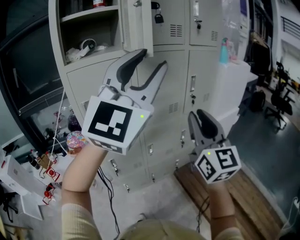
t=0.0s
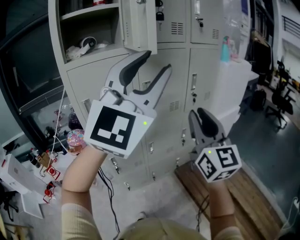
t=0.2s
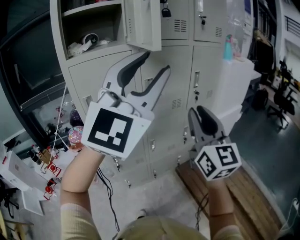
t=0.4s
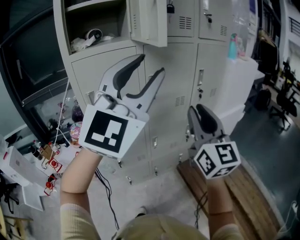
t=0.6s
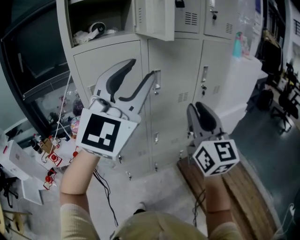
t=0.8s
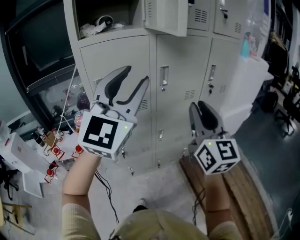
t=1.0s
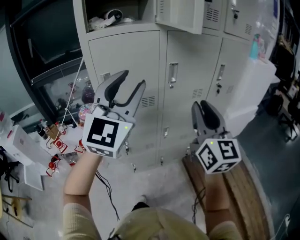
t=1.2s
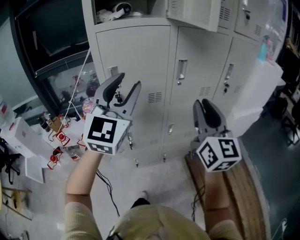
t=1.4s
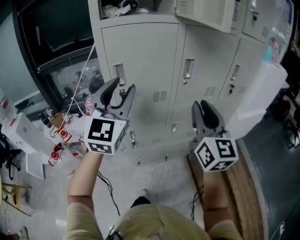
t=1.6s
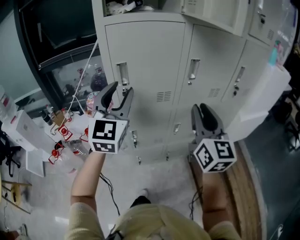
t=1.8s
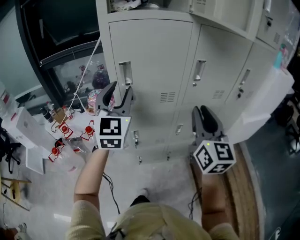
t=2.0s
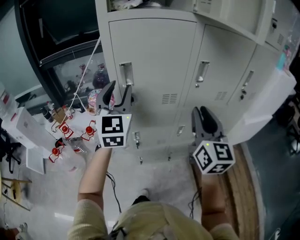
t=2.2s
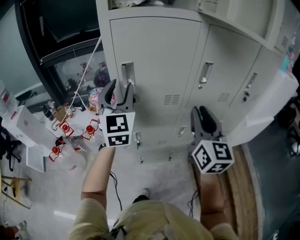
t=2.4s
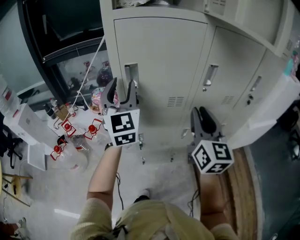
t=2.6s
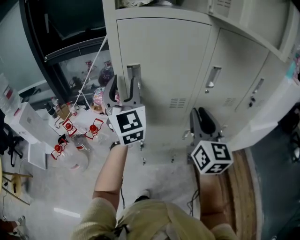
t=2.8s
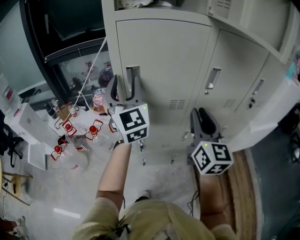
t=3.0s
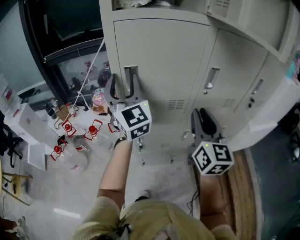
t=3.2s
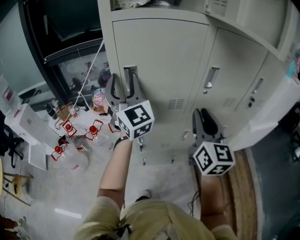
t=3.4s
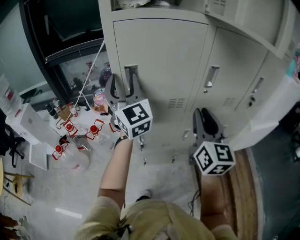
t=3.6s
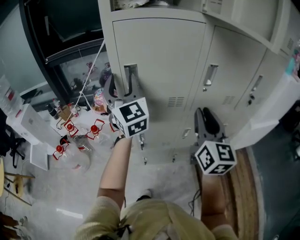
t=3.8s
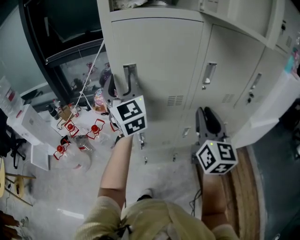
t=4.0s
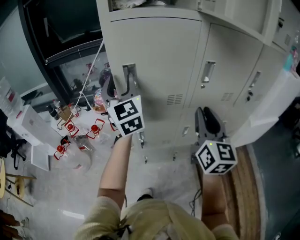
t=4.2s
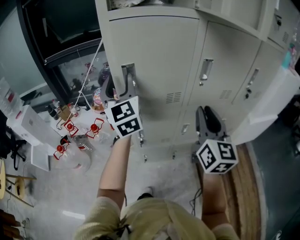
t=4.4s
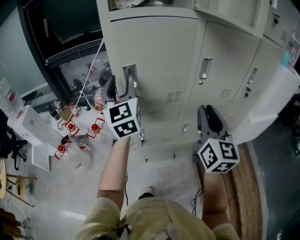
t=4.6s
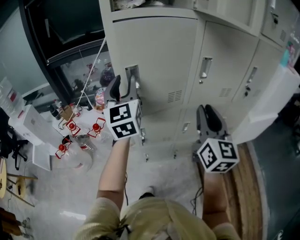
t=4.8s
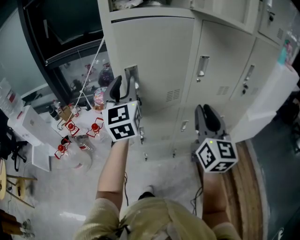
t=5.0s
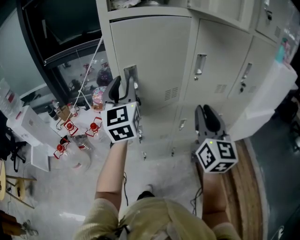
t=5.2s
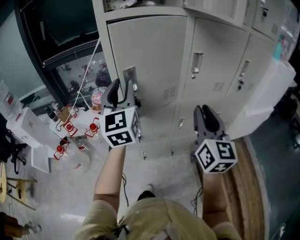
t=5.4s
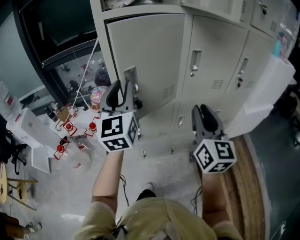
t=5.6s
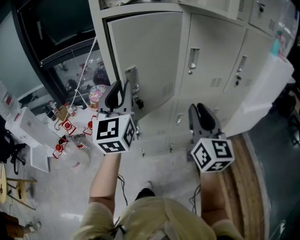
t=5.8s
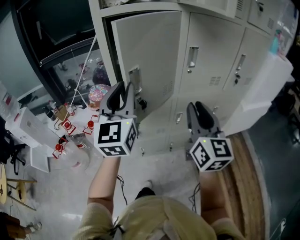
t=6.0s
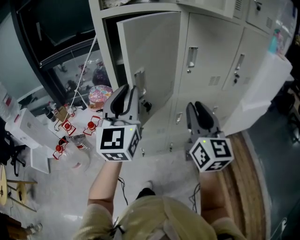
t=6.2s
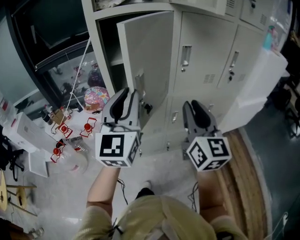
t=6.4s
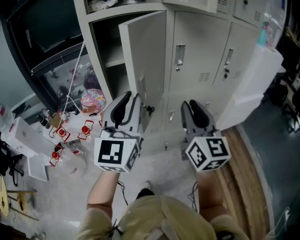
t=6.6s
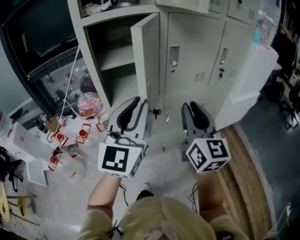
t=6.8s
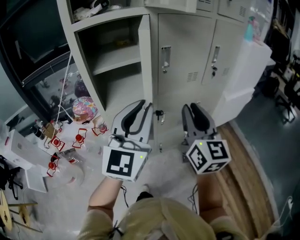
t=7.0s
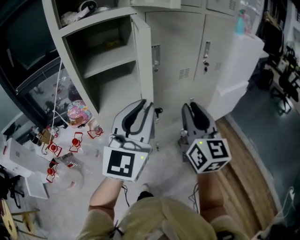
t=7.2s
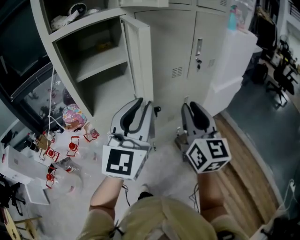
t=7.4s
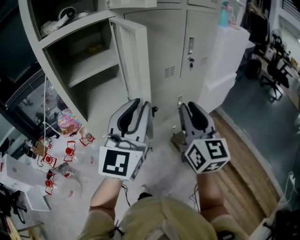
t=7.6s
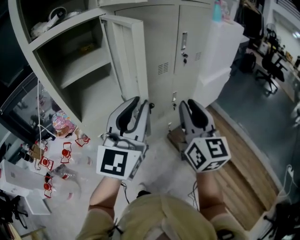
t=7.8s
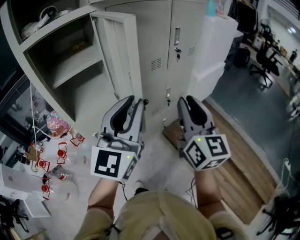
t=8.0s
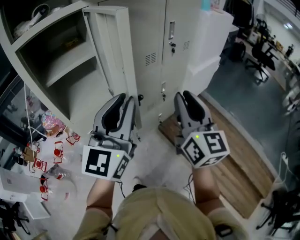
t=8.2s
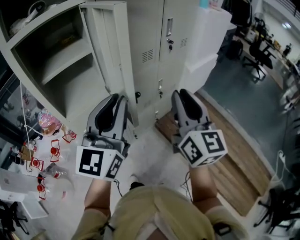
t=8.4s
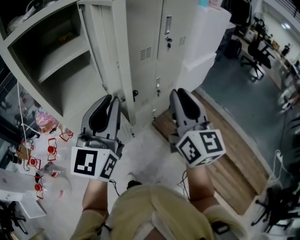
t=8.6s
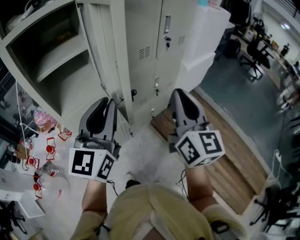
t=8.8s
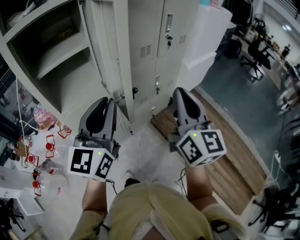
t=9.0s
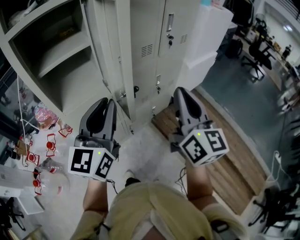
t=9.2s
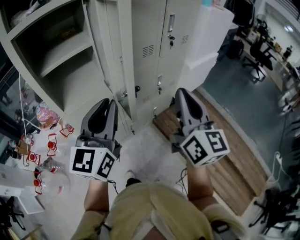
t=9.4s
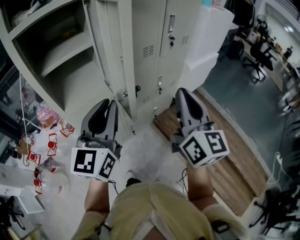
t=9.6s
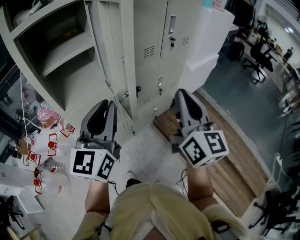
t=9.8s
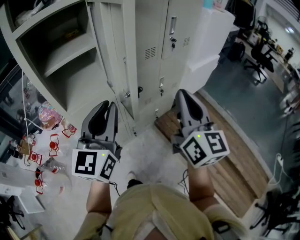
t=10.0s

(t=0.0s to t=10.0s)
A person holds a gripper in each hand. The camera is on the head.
t=0.0s - t=1.4s: The right gripper goes about 10 cm to the left, while the left gripper shifts approximately 25 cm to the left and downward, and rotates some 30 degrees.
t=1.4s - t=2.8s: The two grippers go approximately 15 cm forward, to the left and downward. The left gripper changes its angle by approximately 30 degrees.
t=2.8s - t=4.2s: The grippers move only a little.
t=4.2s - t=5.8s: The left gripper heads backward and to the right, covering some 15 cm, turns by about 20 degrees, and closes up, while the right gripper heads backward, covering about 5 cm.
t=5.8s - t=7.2s: The left gripper goes about 20 cm to the right and backward, and rotates about 30 degrees. Meanwhile the right gripper goes about 5 cm to the right.
t=7.2s - t=8.6s: The right gripper shifts roughly 5 cm to the right.
t=8.6s - t=10.0s: The grippers make only small movements.

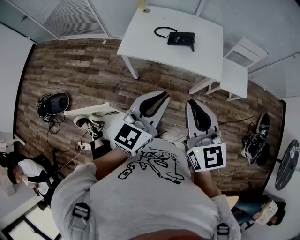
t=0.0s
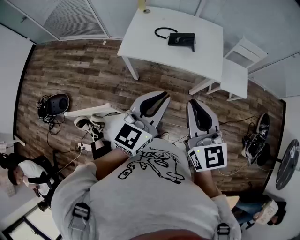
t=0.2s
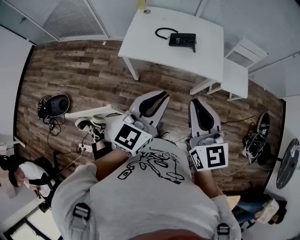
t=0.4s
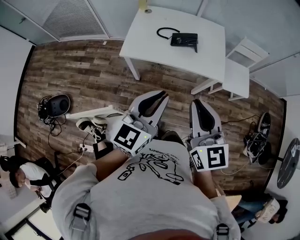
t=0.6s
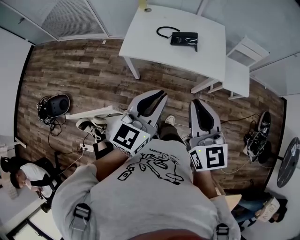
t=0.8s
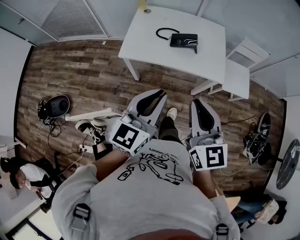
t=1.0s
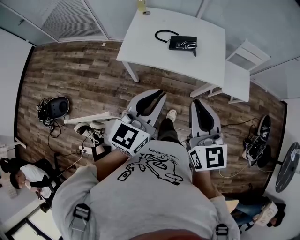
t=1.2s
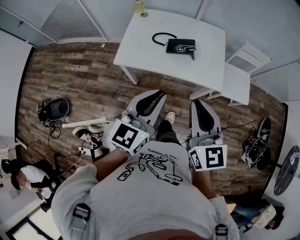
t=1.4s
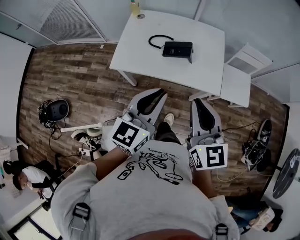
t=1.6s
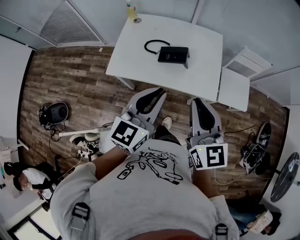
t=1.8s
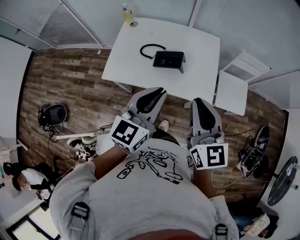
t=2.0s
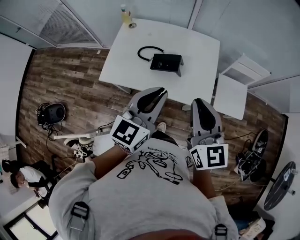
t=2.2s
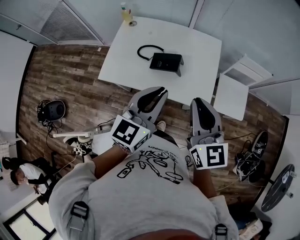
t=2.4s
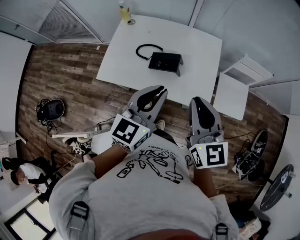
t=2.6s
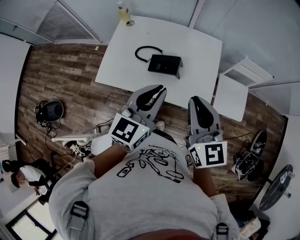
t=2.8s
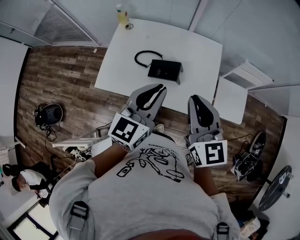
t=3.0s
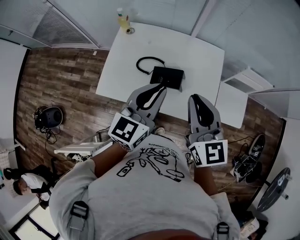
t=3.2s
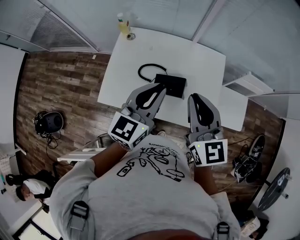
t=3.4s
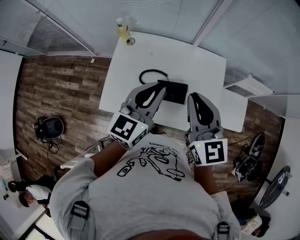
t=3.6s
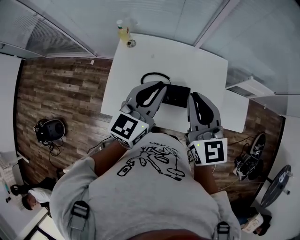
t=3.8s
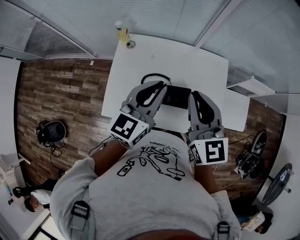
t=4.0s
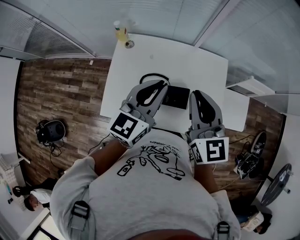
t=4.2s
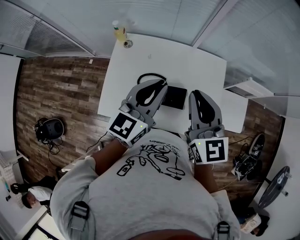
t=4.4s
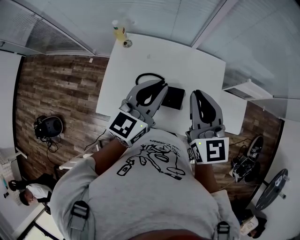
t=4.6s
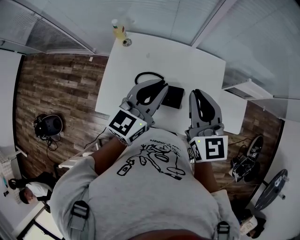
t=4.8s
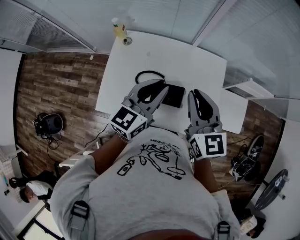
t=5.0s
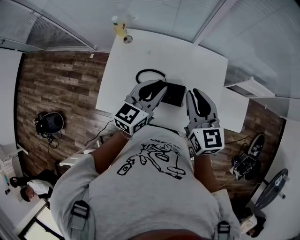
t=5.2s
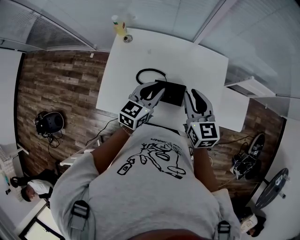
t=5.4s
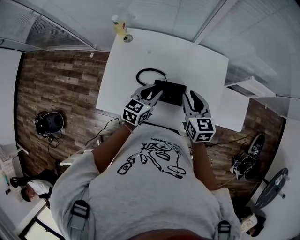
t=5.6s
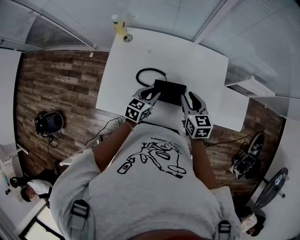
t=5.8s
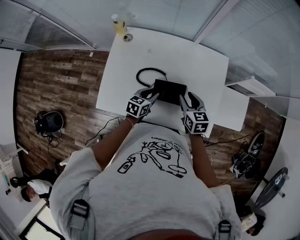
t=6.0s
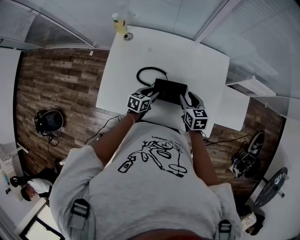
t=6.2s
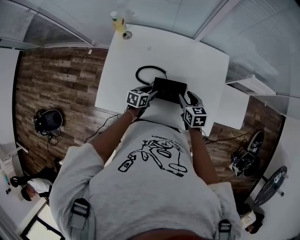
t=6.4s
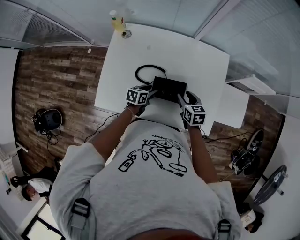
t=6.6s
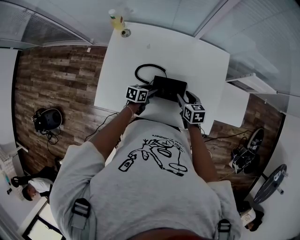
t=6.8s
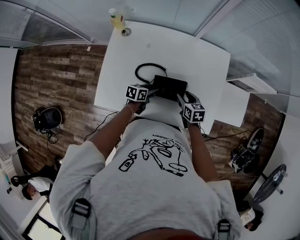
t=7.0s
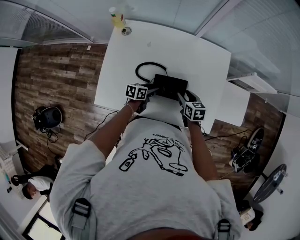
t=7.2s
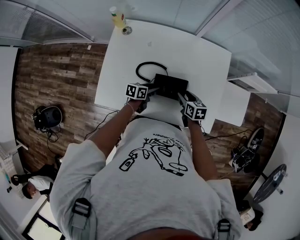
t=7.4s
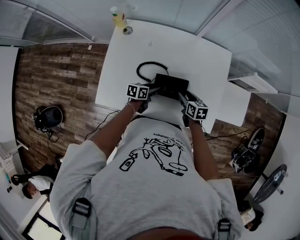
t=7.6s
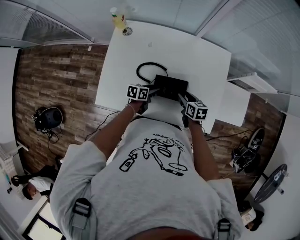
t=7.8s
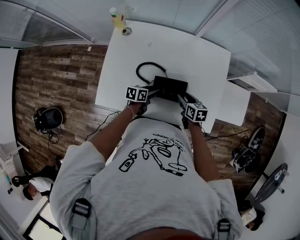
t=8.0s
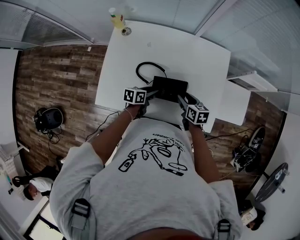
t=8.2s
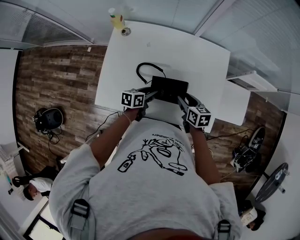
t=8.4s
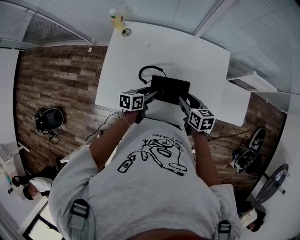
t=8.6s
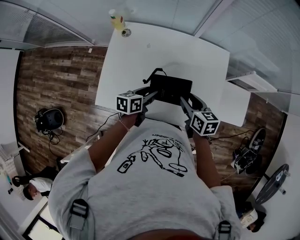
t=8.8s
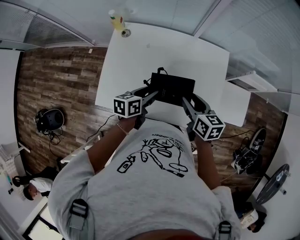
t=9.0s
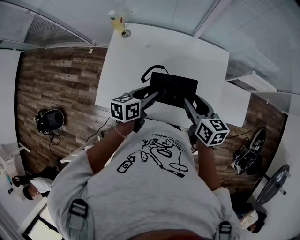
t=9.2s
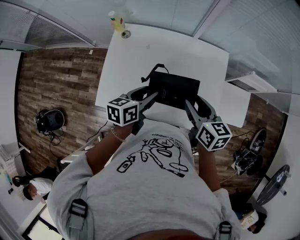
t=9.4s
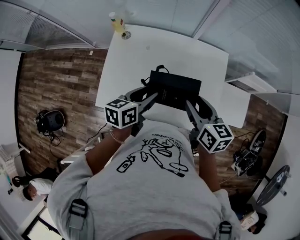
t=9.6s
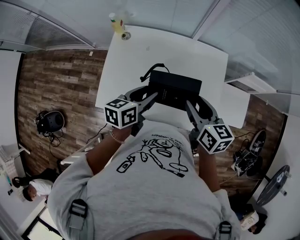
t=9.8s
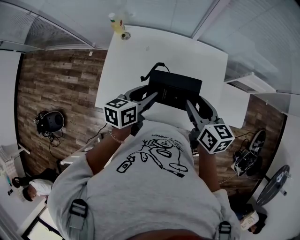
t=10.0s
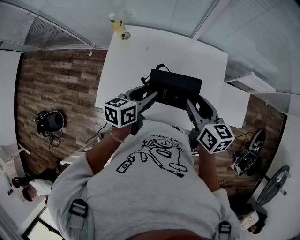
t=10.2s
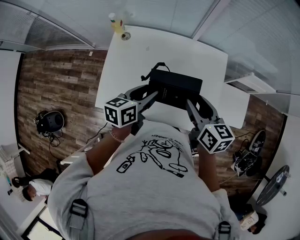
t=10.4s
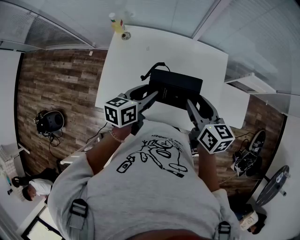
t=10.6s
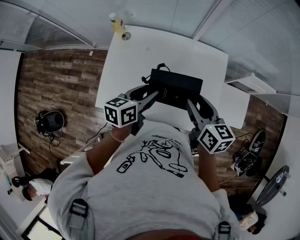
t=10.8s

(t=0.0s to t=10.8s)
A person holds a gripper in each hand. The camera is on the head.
t=0.0s - t=1.6s: The two grippers go about 15 cm forward.
t=1.6s - t=3.0s: The two grippers go some 20 cm forward.
t=3.0s - t=4.6s: The two grippers go some 20 cm forward.
t=4.6s - t=6.2s: The grippers both shift downward by some 35 cm. The left gripper tips its fingers downward by some 40 degrees, and opens its fingers, while the right gripper points its fingers about 30 degrees further downward, and opens.
t=6.2s - t=7.8s: The right gripper is displaced downward by roughly 10 cm. Meanwhile the left gripper heads downward, covering some 5 cm.
t=7.8s - t=9.2s: Both grippers travel together upward, approximately 20 cm.
t=9.2s - t=10.8s: The two grippers go about 5 cm upward.

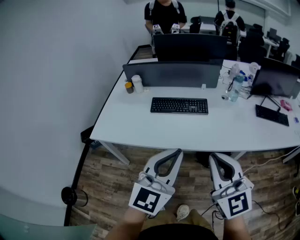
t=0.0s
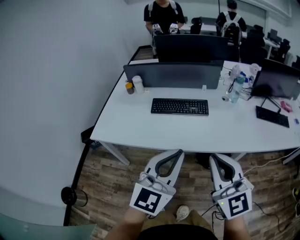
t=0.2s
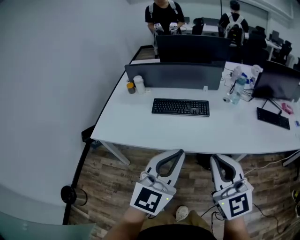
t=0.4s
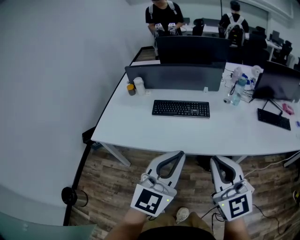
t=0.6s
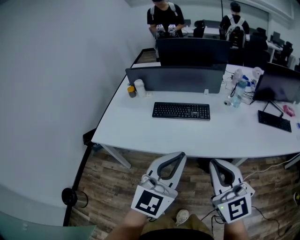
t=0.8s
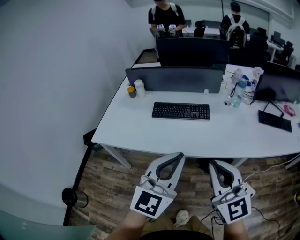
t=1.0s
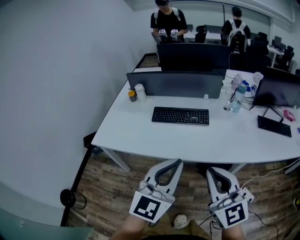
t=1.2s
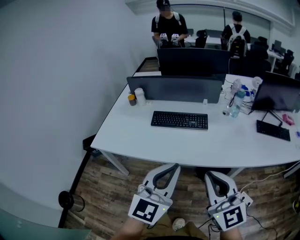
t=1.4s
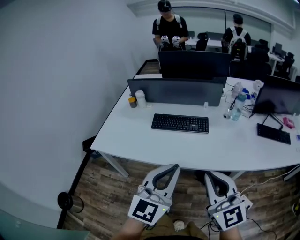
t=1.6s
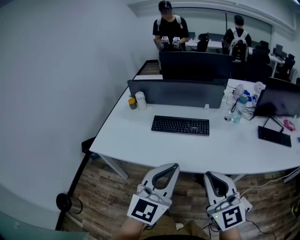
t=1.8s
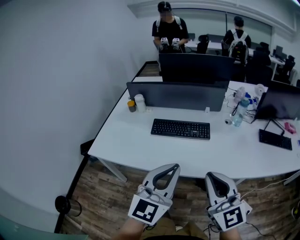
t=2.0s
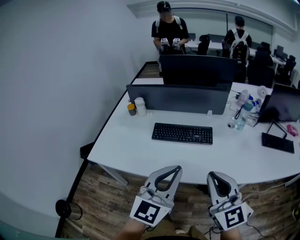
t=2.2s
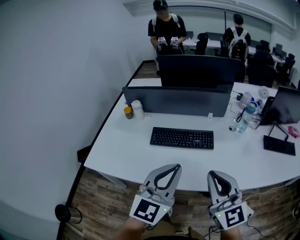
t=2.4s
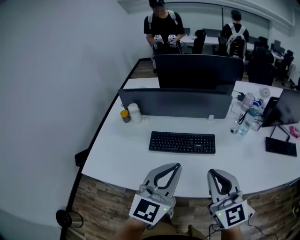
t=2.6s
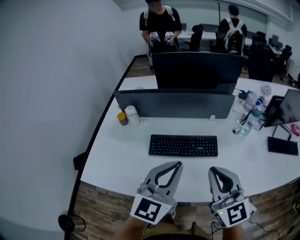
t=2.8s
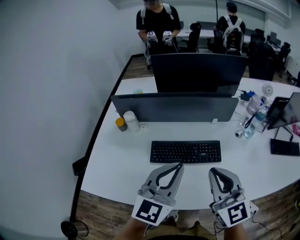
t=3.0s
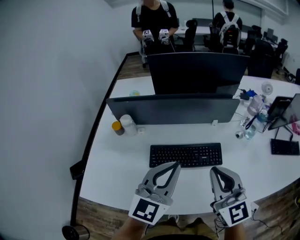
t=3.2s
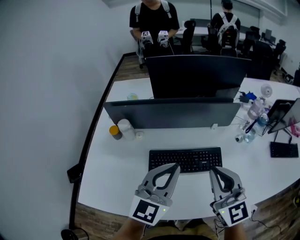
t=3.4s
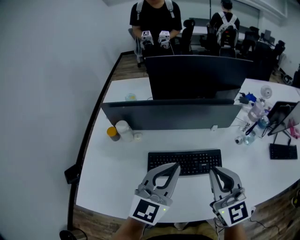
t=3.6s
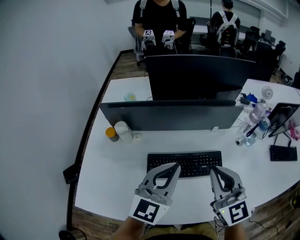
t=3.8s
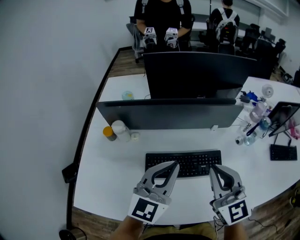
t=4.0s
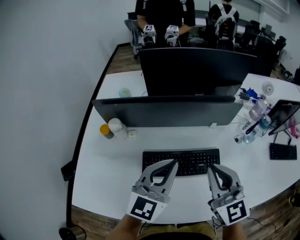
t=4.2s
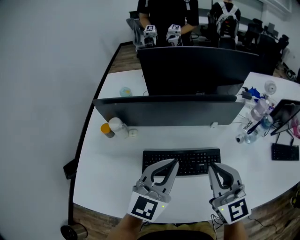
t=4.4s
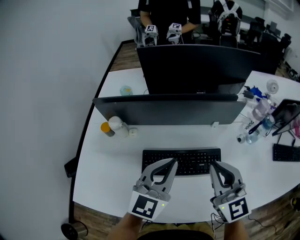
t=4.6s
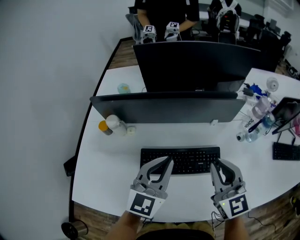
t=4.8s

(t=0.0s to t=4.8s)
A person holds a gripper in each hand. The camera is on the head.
t=0.0s - t=1.6s: The grippers move only a little.
t=1.6s - t=3.2s: The two grippers go about 35 cm forward.
t=3.2s - t=4.8s: Both grippers move forward and downward, approximately 15 cm.
